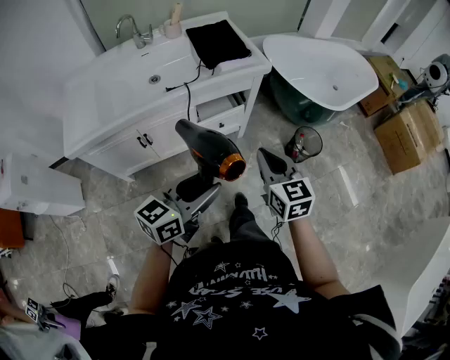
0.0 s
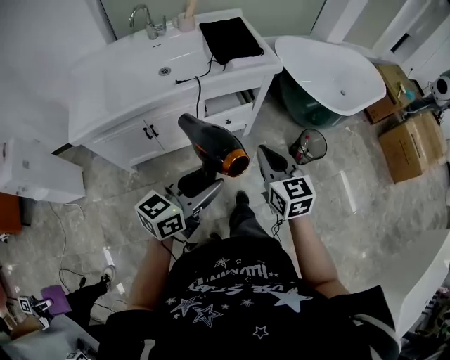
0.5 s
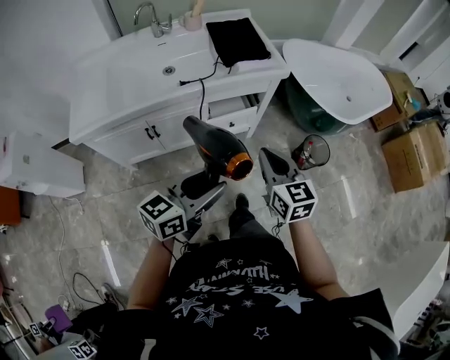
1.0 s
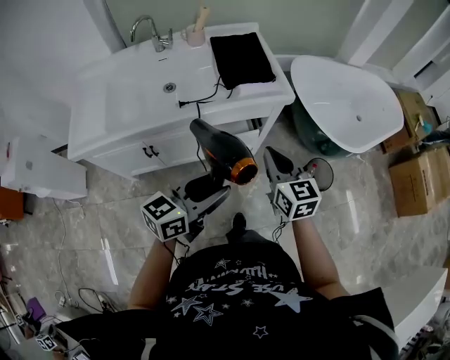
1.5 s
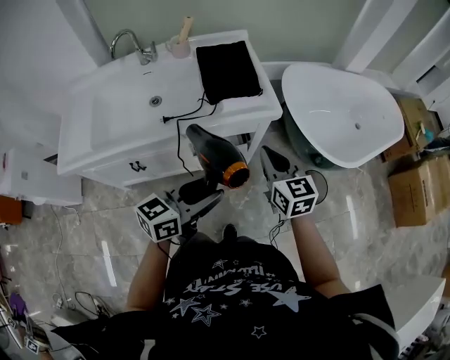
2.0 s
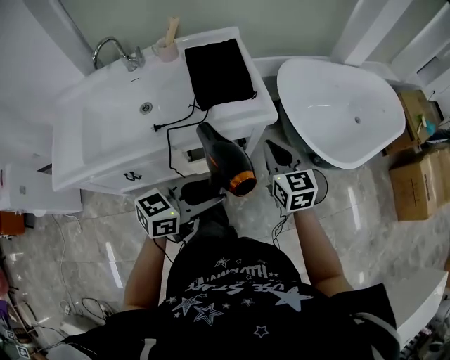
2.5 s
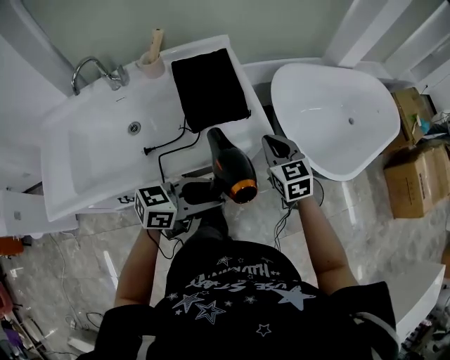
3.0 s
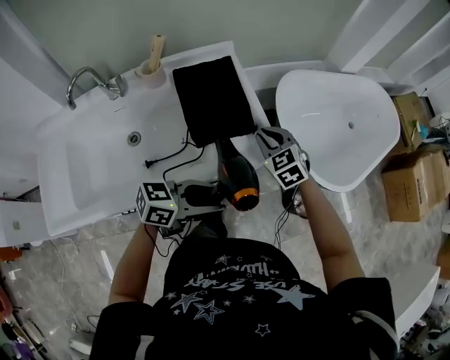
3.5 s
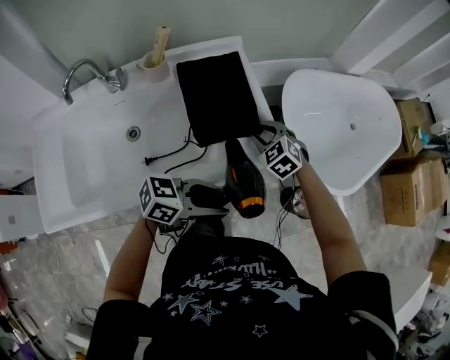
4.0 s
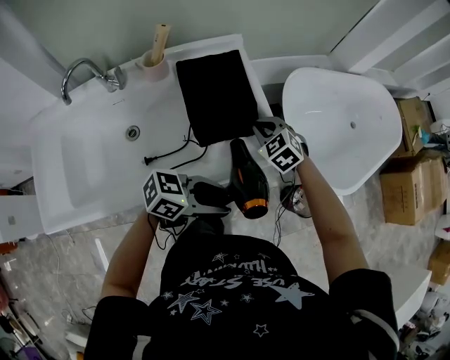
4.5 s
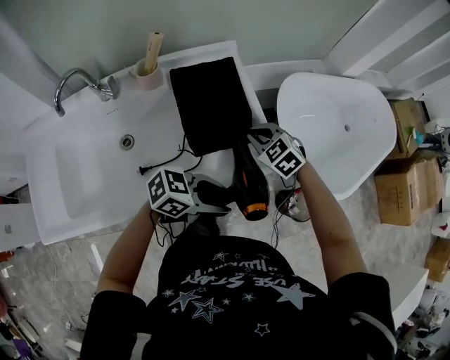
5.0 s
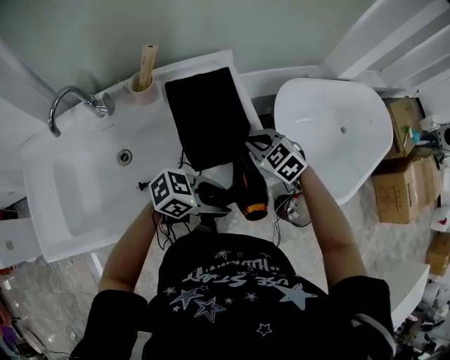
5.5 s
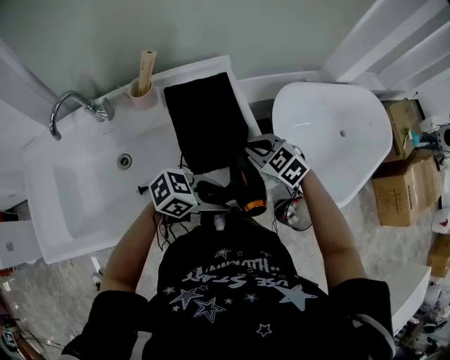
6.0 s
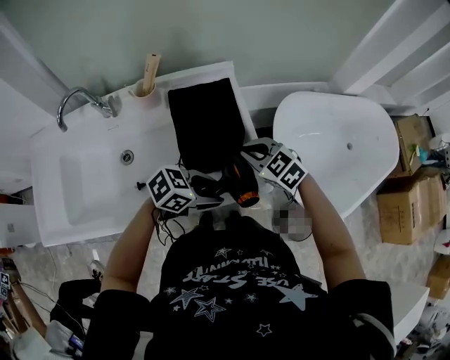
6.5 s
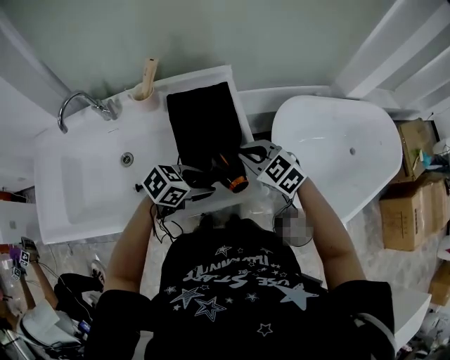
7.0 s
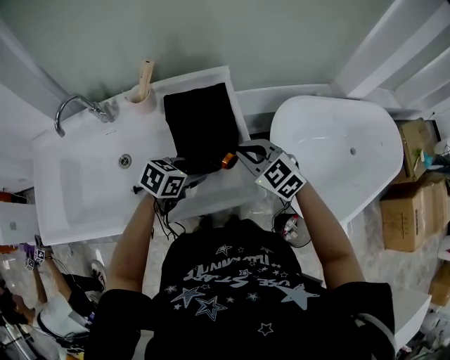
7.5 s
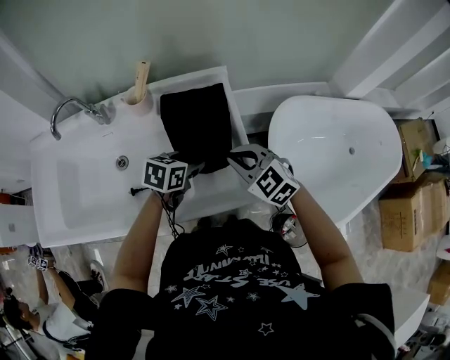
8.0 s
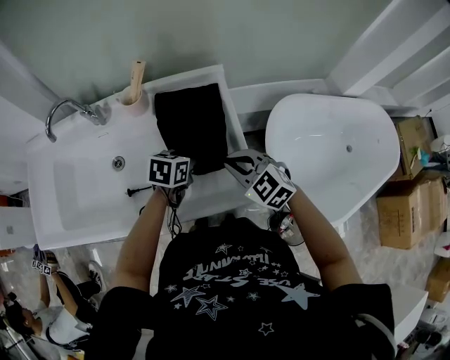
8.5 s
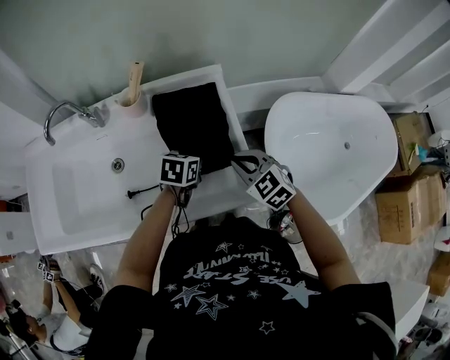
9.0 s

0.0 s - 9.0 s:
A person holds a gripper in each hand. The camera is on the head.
0.0 s - 2.0 s: The grippers both shift forward by some 25 cm.
2.0 s - 4.5 s: The left gripper is displaced forward by approximately 15 cm, and turns by some 40 degrees. The right gripper travels forward, to the left and downward by some 30 cm, points its fingers about 30 degrees further downward, and opens and closes again.
4.5 s - 7.0 s: The left gripper changes place by some 15 cm, and rotates approximately 30 degrees. Meanwhile the right gripper ends up roughly 5 cm from where it was, and turns by roughly 20 degrees.
7.0 s - 9.0 s: The left gripper shifts by about 15 cm, and swivels approximately 40 degrees.

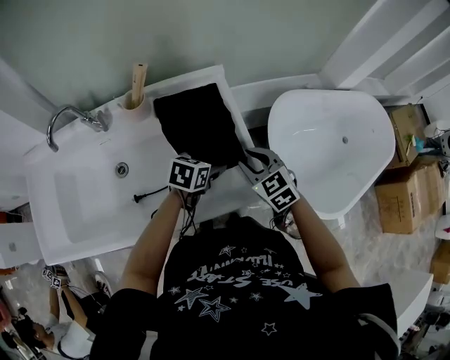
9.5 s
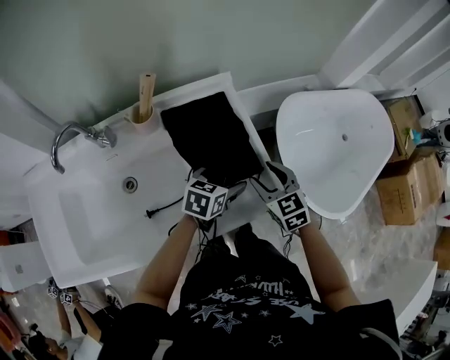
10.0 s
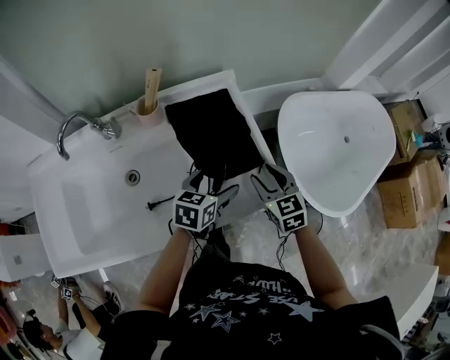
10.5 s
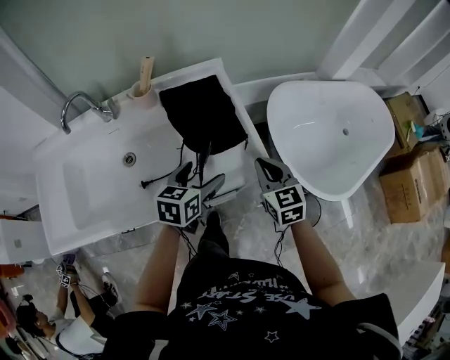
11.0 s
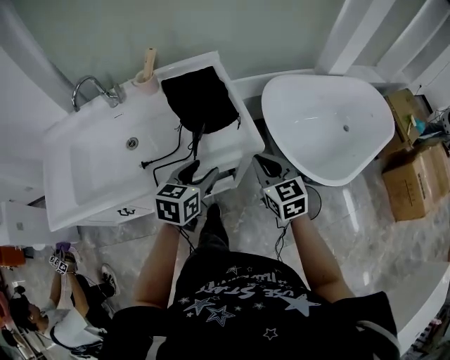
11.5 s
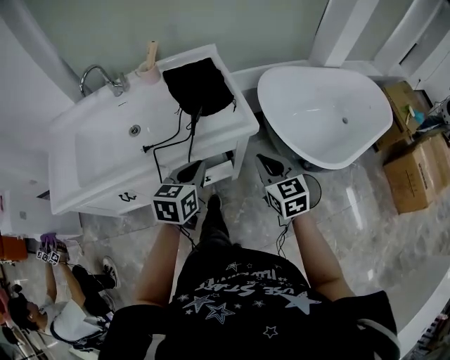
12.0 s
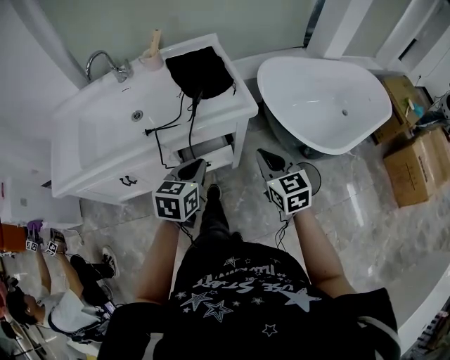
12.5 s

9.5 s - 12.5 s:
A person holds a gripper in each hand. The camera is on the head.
9.5 s - 11.0 s: The left gripper goes about 15 cm backward and upward. Meanwhile the right gripper goes approximately 10 cm backward, turns by about 20 degrees, and closes.
11.0 s - 12.5 s: Both grippers move backward, about 20 cm. The left gripper closes.

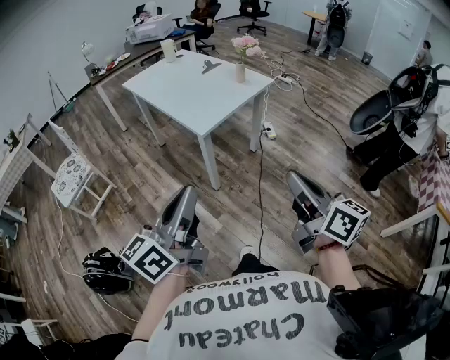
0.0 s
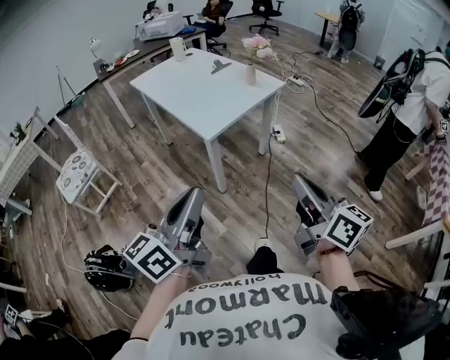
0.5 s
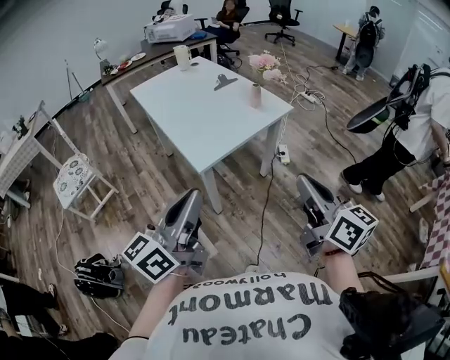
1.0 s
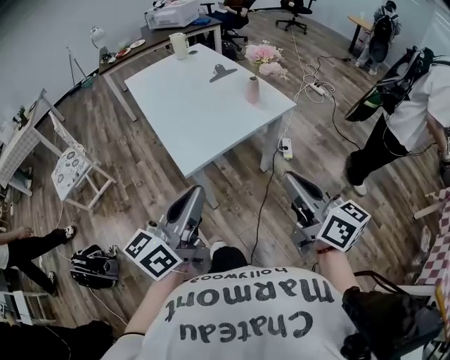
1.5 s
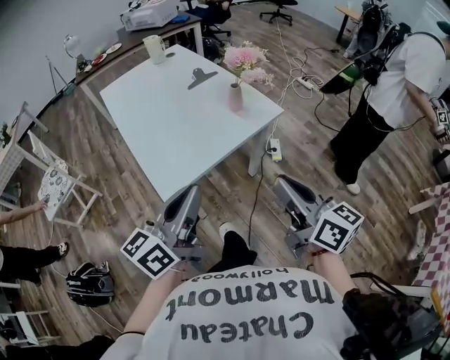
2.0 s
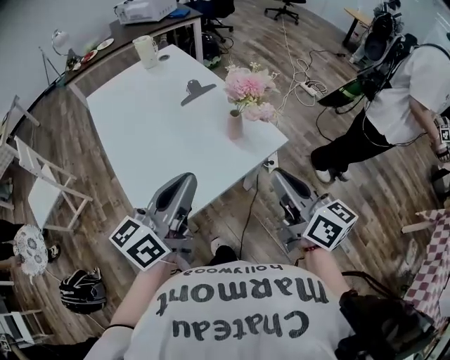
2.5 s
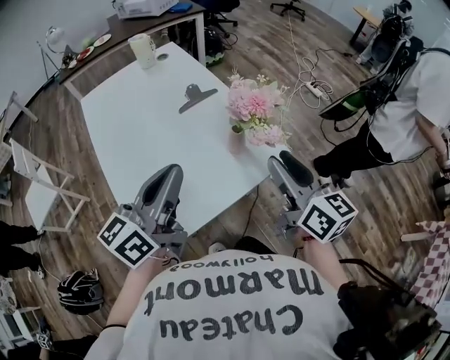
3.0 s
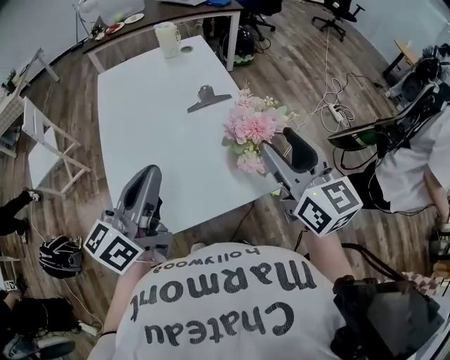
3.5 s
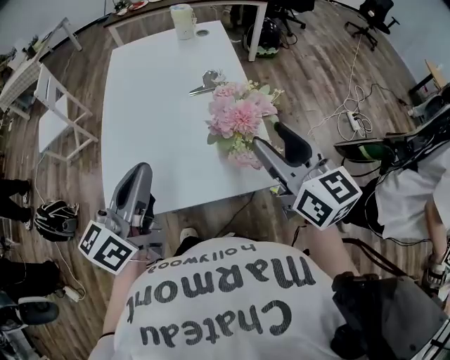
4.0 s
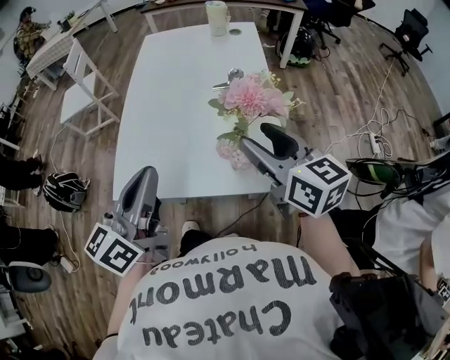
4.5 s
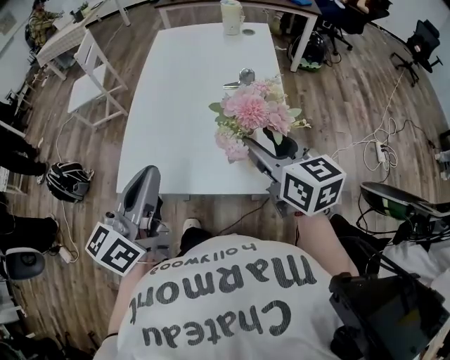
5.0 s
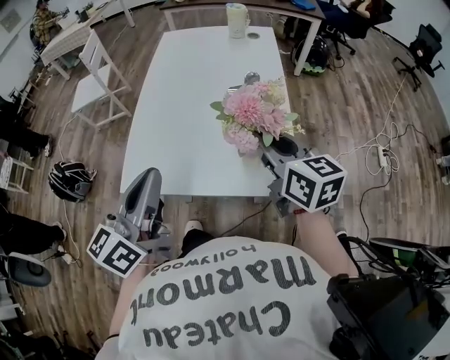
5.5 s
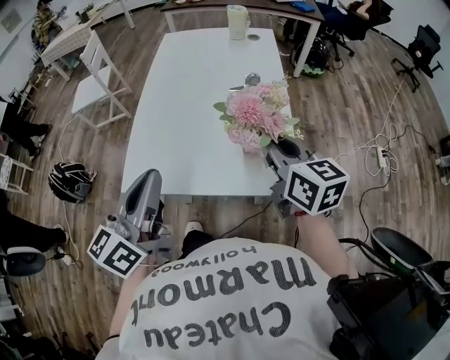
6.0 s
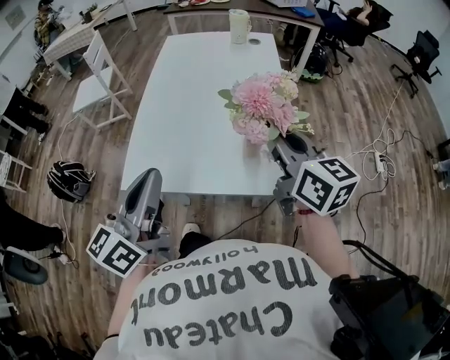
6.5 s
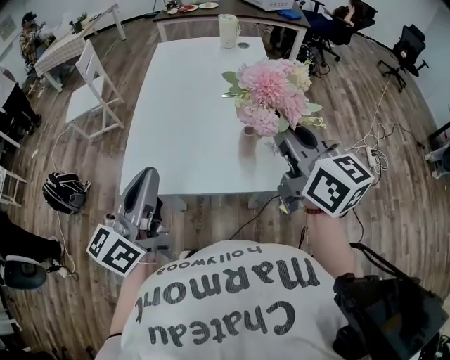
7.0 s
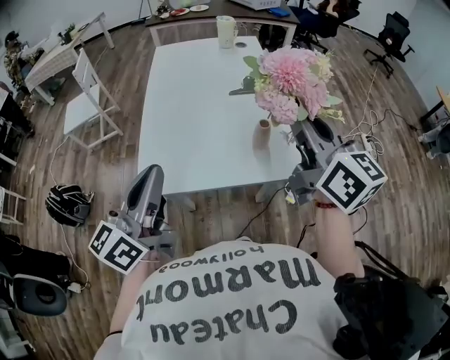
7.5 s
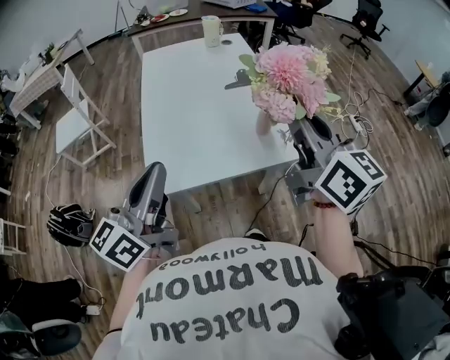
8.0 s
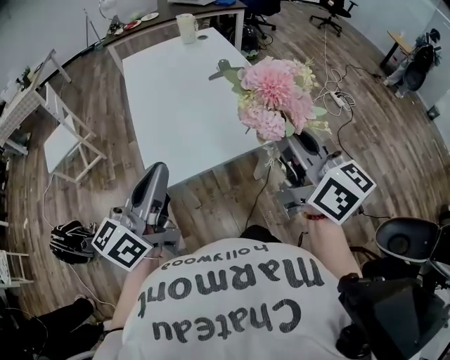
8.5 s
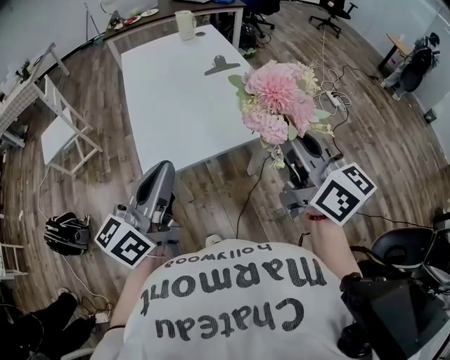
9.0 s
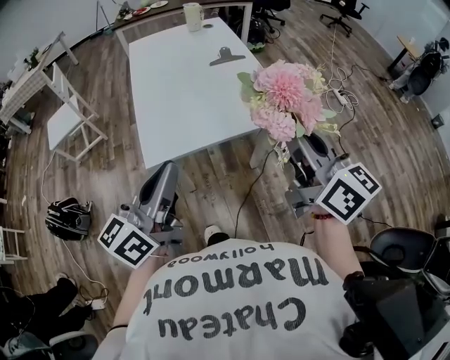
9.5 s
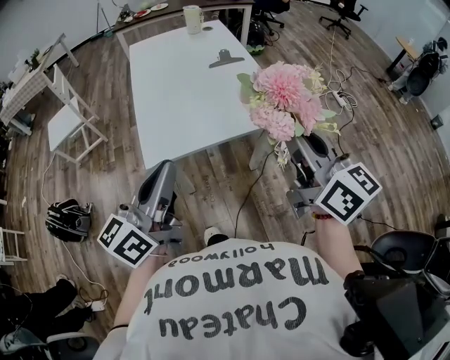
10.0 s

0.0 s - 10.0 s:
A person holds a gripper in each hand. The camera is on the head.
0.0 s - 2.0 s: Both grippers are carried forward and to the right, approximately 40 cm.
2.0 s - 4.0 s: The left gripper shifts by roughly 25 cm, and turns by approximately 30 degrees. Meanwhile the right gripper changes place by roughly 40 cm, turns by about 30 degrees, and opens its fingers.
4.0 s - 6.0 s: The left gripper moves backward, some 5 cm, while the right gripper shifts roughly 5 cm to the left, and closes its fingers.
6.0 s - 8.0 s: The left gripper is displaced to the left by approximately 10 cm. The right gripper is displaced upward, backward and to the left by about 20 cm, and changes its angle by about 30 degrees.
8.0 s - 10.0 s: The two grippers go roughly 10 cm backward.

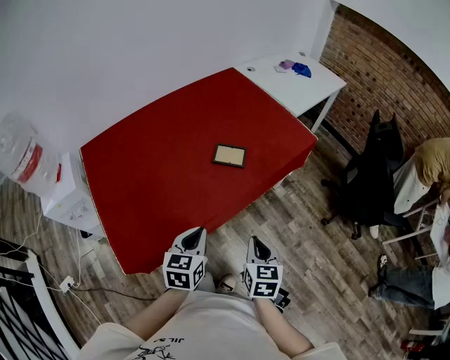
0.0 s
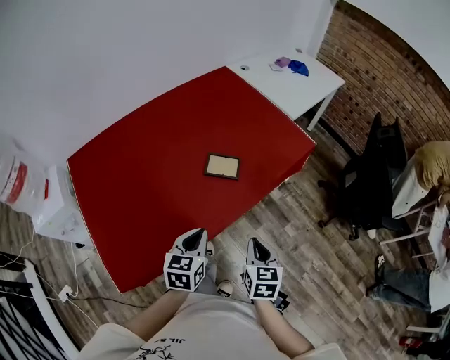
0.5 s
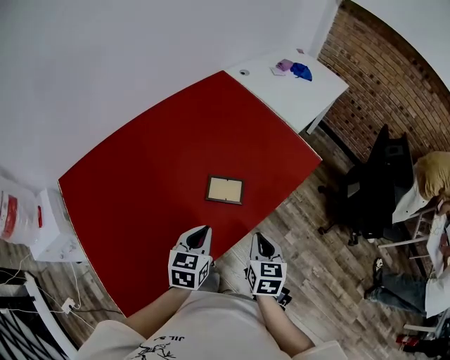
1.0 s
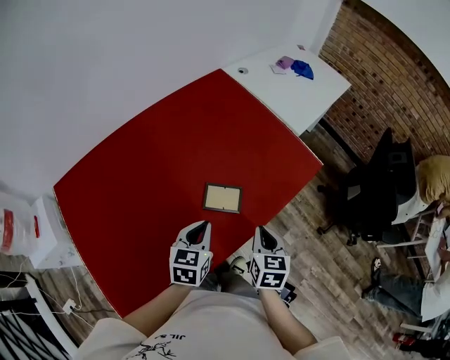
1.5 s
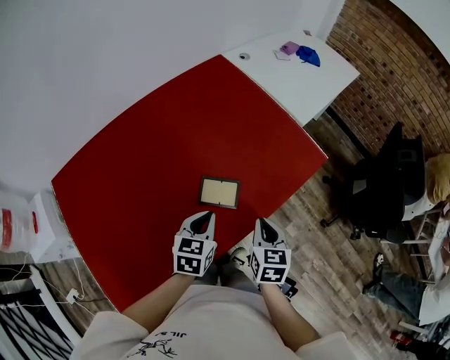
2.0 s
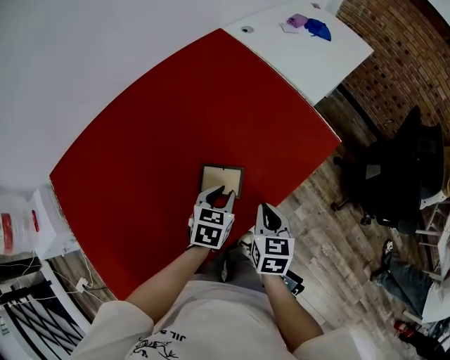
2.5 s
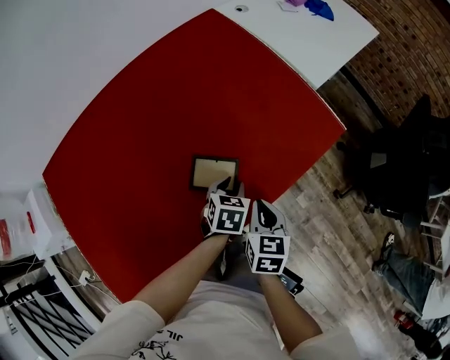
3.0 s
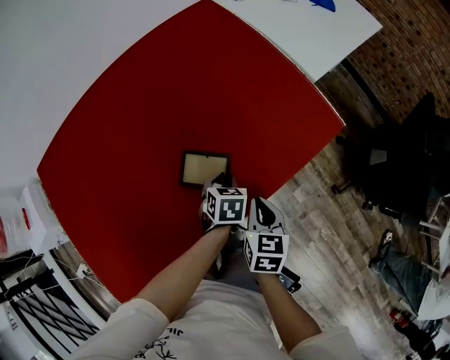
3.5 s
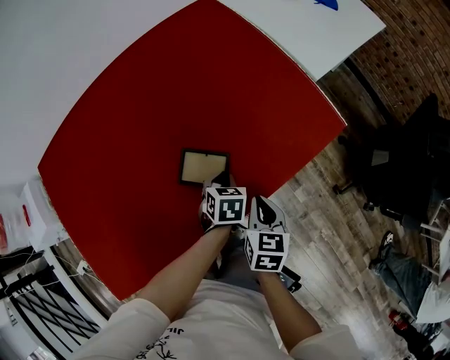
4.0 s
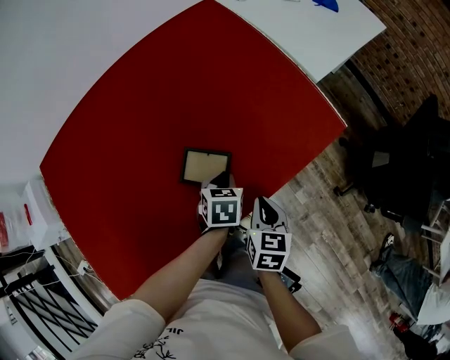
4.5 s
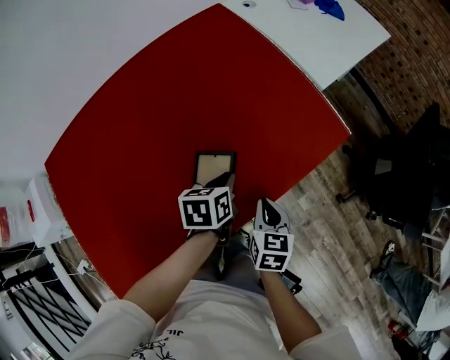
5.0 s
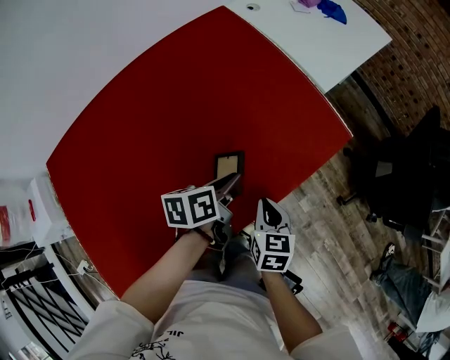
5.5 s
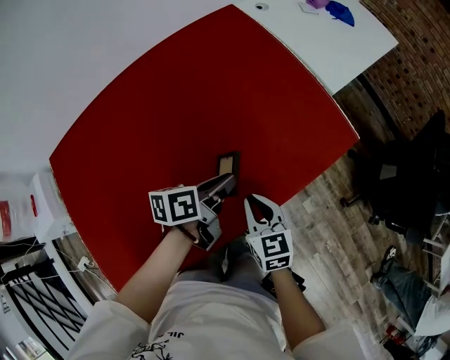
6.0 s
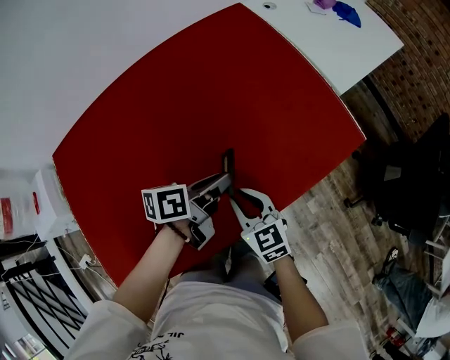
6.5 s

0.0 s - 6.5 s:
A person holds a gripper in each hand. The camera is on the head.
0.0 s - 2.0 s: The two grippers go about 30 cm forward.
2.0 s - 4.5 s: The right gripper travels downward by roughly 10 cm. The left gripper shifts roughly 20 cm downward, forward and to the right, and changes its angle by some 20 degrees.
4.5 s - 6.5 s: The left gripper travels upward and to the left by roughly 15 cm, and angles its fingers upward, by about 40 degrees. Meanwhile the right gripper moves to the left, approximately 15 cm, and rotates approximately 40 degrees.
